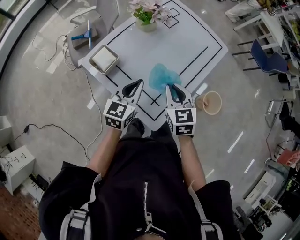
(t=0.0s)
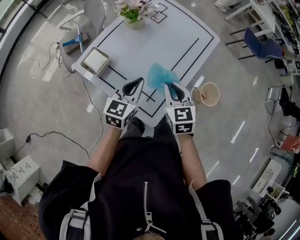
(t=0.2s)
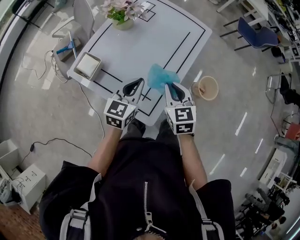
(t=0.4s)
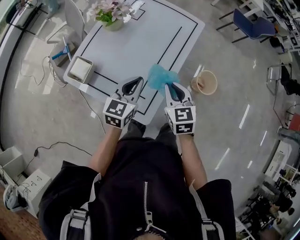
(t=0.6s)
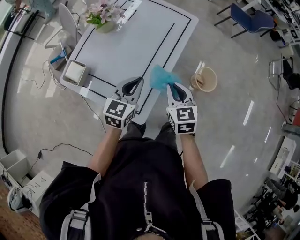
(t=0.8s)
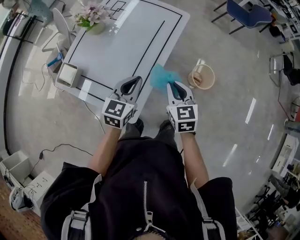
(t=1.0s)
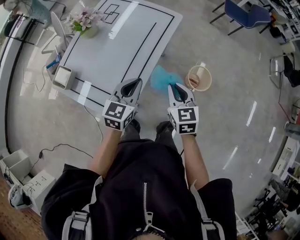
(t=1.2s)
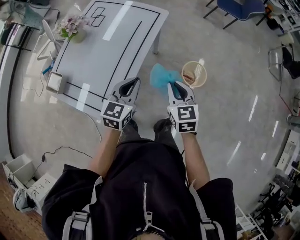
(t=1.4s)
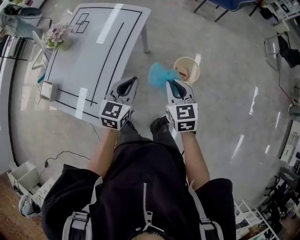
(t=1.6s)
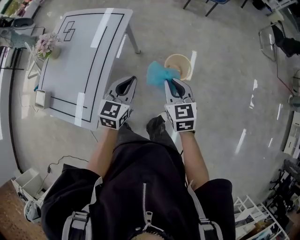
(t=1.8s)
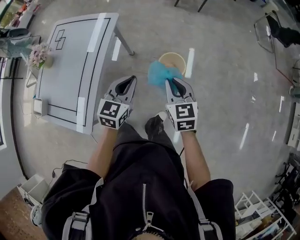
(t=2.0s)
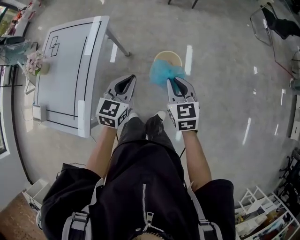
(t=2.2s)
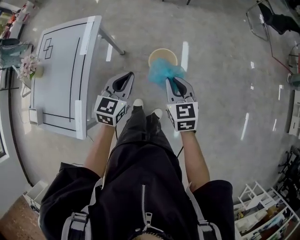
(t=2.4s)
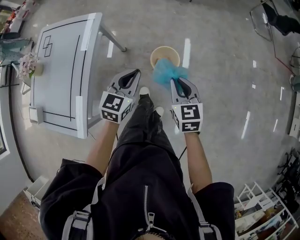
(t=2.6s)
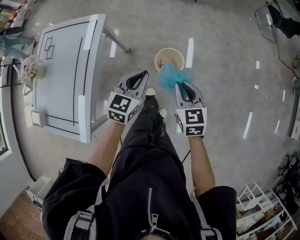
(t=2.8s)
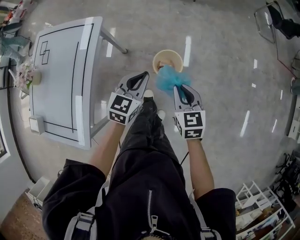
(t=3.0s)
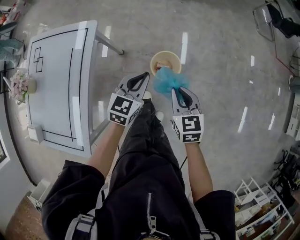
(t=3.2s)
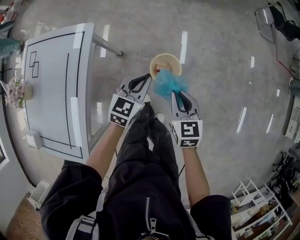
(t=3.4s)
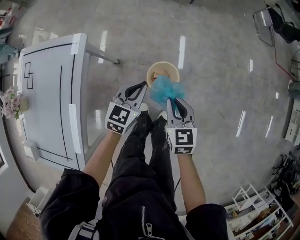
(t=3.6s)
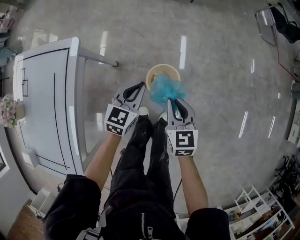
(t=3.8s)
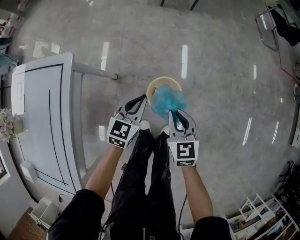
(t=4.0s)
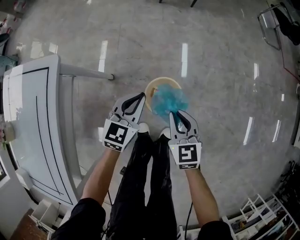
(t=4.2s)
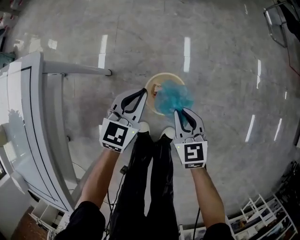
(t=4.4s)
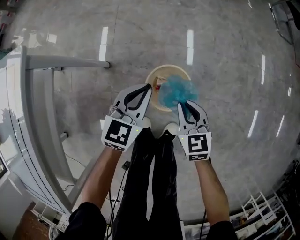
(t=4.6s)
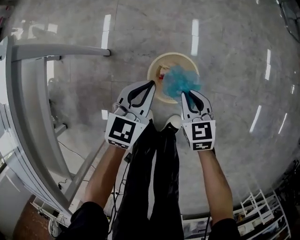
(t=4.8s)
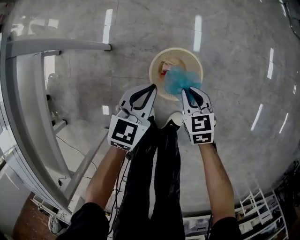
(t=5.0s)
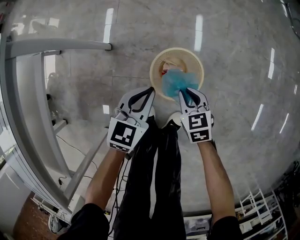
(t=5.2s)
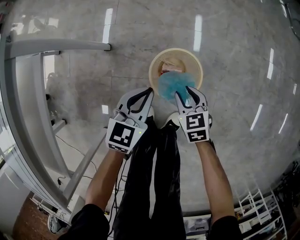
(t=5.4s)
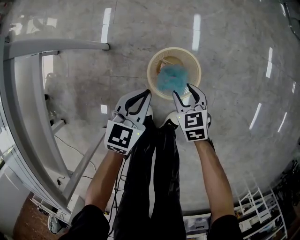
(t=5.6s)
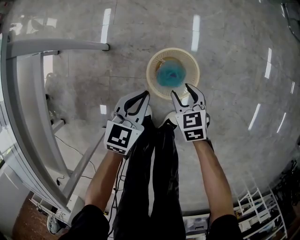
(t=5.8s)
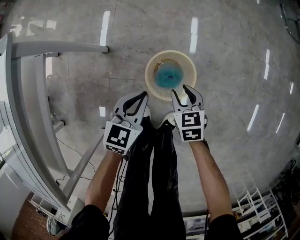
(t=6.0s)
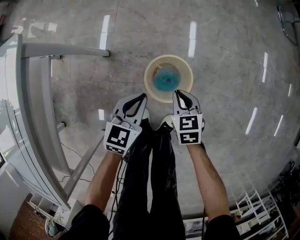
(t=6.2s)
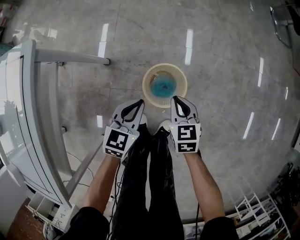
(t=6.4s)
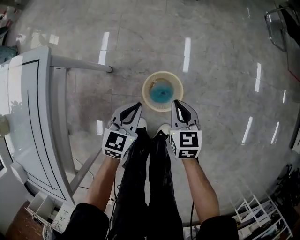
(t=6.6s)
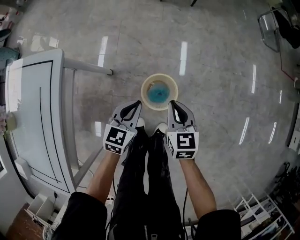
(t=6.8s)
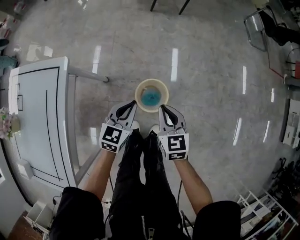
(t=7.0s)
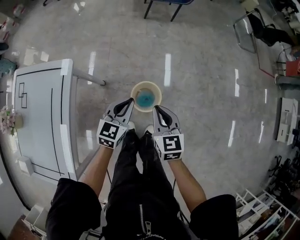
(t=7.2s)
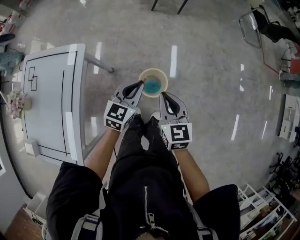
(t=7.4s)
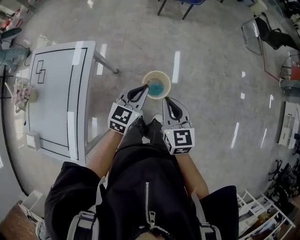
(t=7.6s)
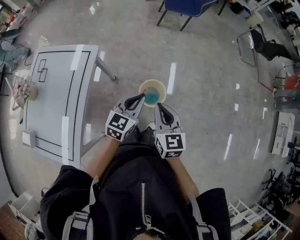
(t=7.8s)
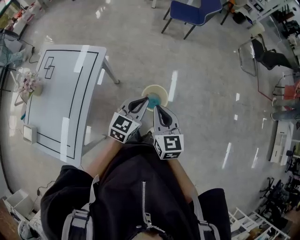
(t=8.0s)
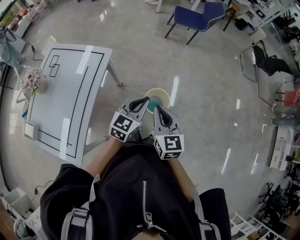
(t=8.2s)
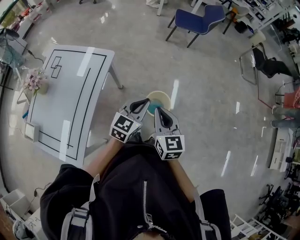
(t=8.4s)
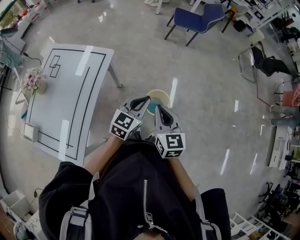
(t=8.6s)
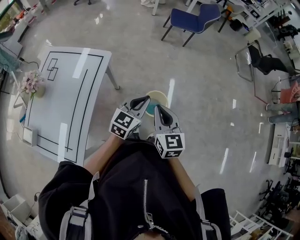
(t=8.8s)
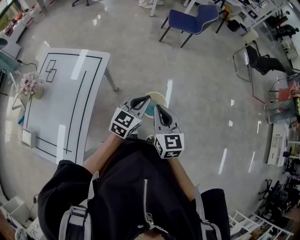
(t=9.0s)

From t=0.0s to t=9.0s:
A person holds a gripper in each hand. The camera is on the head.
From t=0.0s to t=1.6s: Both grippers are carried to the right, about 40 cm. The right gripper turns by approximately 20 degrees. Meanwhile the left gripper turns by some 20 degrees.
From t=1.6s to t=3.0s: Both grippers travel together to the right and forward, about 25 cm.
From t=3.0s to t=4.4s: The grippers both shift downward and forward by some 35 cm.
From t=4.4s to t=6.0s: The left gripper travels downward and backward by about 15 cm. The right gripper moves downward, roughly 20 cm, and opens up.
From t=6.0s to t=7.6s: Both grippers move upward, approximately 50 cm. The right gripper turns by roughly 30 degrees, and closes up.
From t=7.6s to t=9.0s: The right gripper goes some 10 cm to the left; the left gripper is displaced to the left by approximately 5 cm.

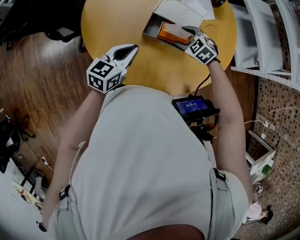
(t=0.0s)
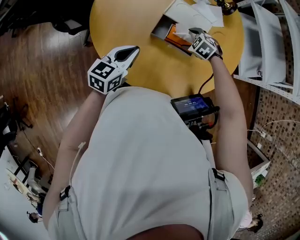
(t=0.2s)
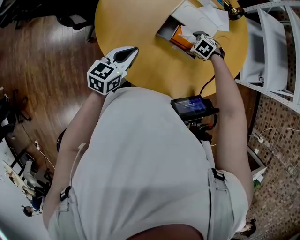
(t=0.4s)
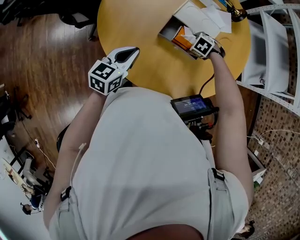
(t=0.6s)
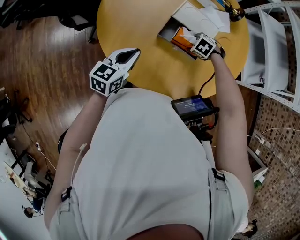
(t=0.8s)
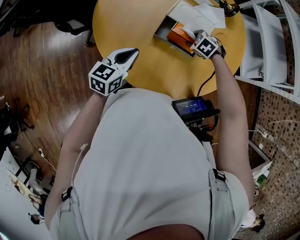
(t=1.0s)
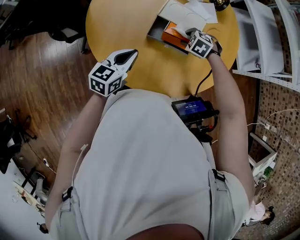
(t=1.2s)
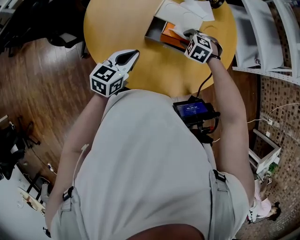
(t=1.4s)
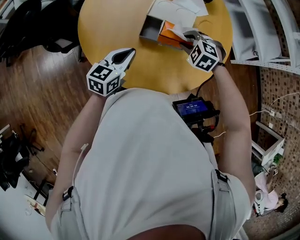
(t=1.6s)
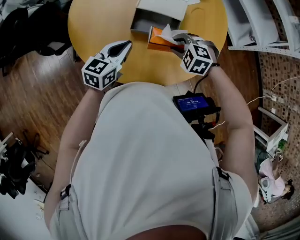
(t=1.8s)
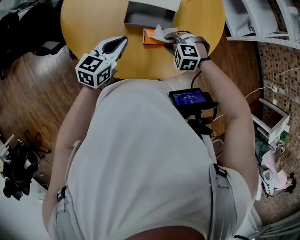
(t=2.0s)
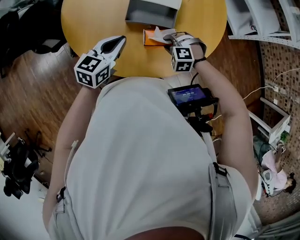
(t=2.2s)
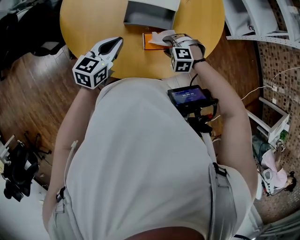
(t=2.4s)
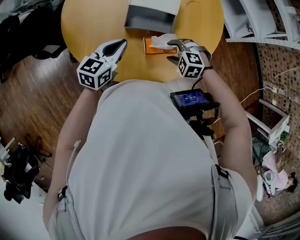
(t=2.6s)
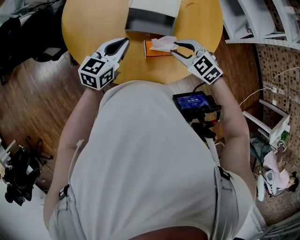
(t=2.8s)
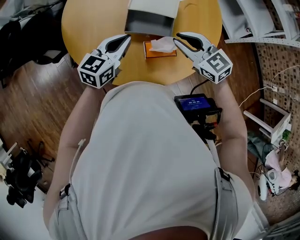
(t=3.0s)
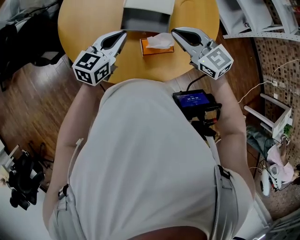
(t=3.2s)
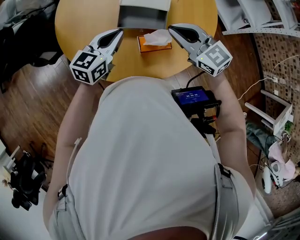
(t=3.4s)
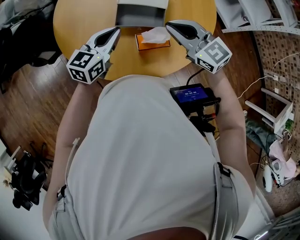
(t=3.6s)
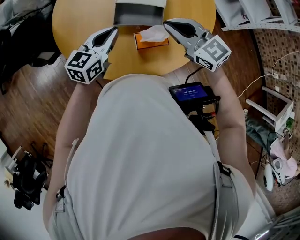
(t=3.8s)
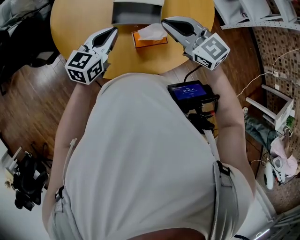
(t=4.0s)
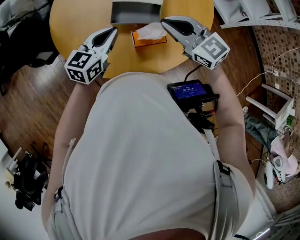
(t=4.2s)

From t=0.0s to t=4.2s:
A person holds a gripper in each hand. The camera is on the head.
From t=0.0s to t=1.4s: The right gripper reaches approximately 10 cm downward, then returns, and closes.
From t=1.4s to t=2.8s: The right gripper goes approximately 15 cm backward and upward, and swivels some 40 degrees.
From t=2.8s to t=4.2s: The right gripper heads upward, covering roughly 10 cm, and angles its fingers upward, by approximately 30 degrees.

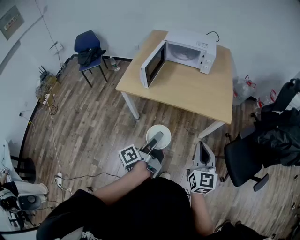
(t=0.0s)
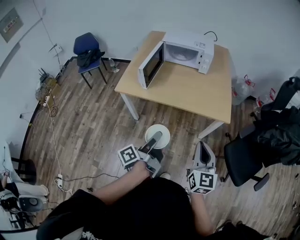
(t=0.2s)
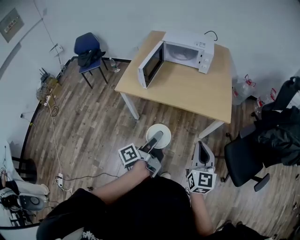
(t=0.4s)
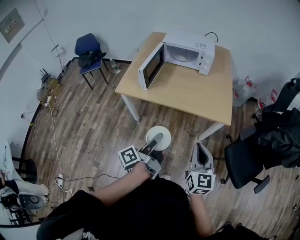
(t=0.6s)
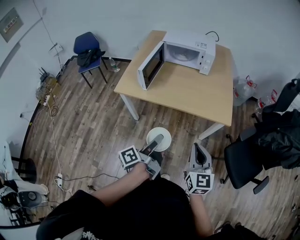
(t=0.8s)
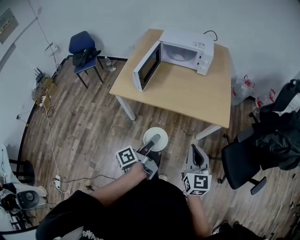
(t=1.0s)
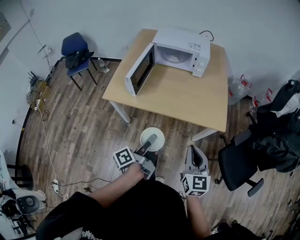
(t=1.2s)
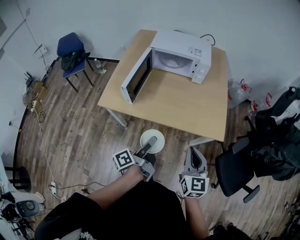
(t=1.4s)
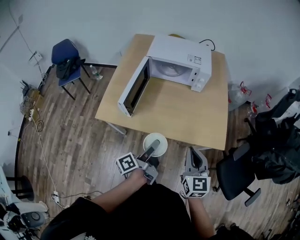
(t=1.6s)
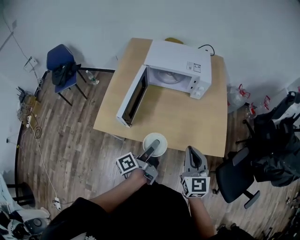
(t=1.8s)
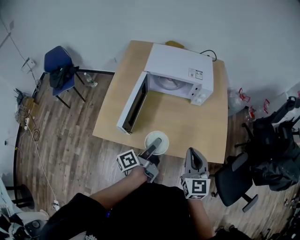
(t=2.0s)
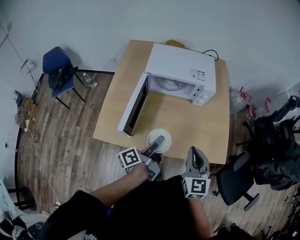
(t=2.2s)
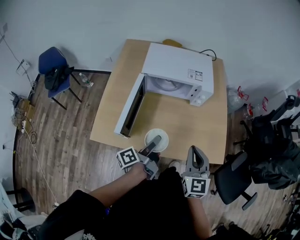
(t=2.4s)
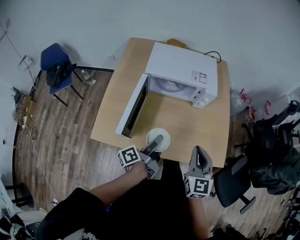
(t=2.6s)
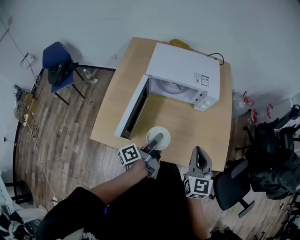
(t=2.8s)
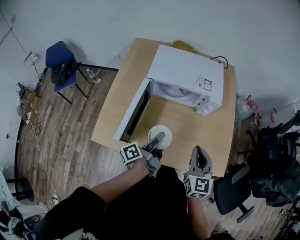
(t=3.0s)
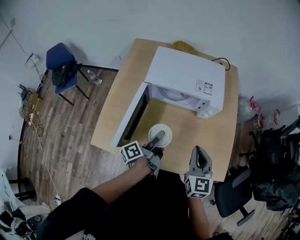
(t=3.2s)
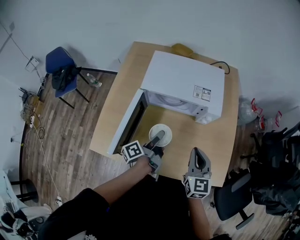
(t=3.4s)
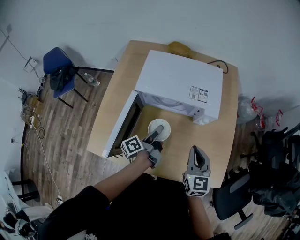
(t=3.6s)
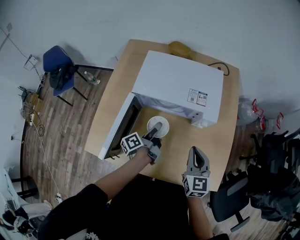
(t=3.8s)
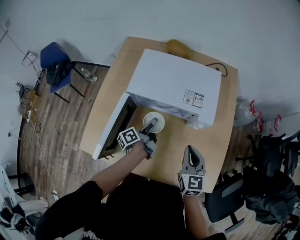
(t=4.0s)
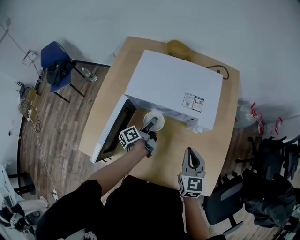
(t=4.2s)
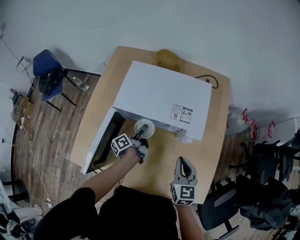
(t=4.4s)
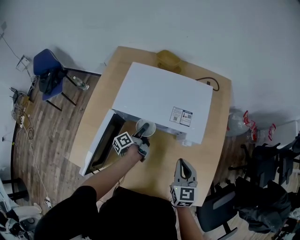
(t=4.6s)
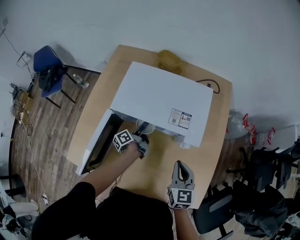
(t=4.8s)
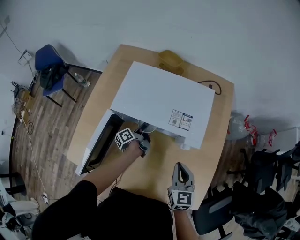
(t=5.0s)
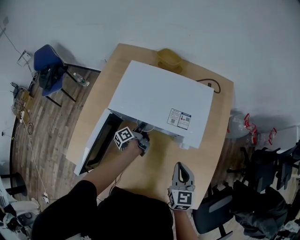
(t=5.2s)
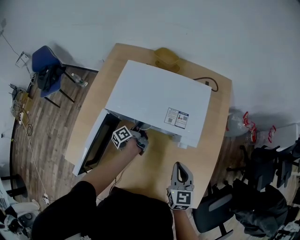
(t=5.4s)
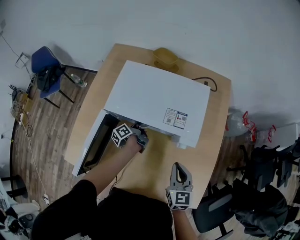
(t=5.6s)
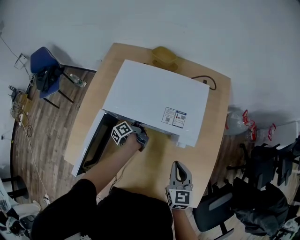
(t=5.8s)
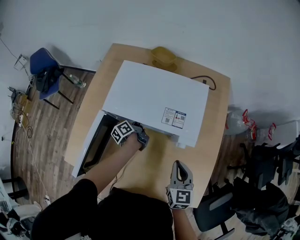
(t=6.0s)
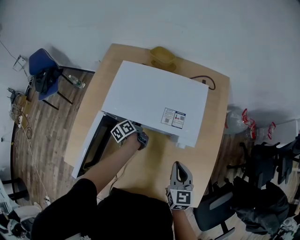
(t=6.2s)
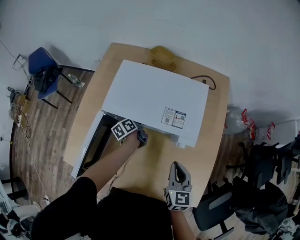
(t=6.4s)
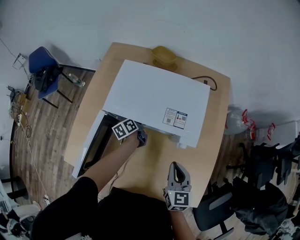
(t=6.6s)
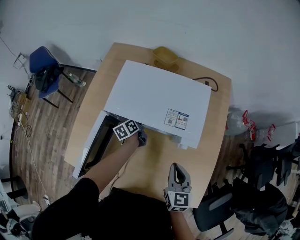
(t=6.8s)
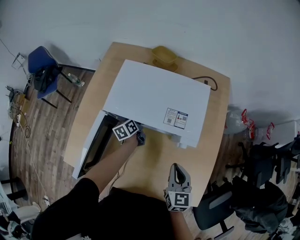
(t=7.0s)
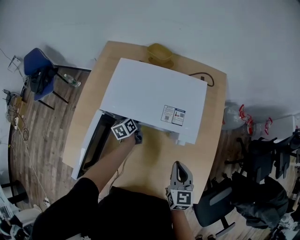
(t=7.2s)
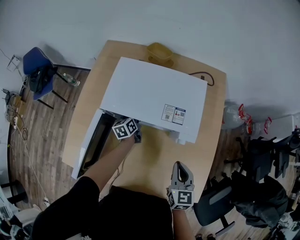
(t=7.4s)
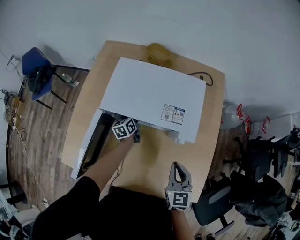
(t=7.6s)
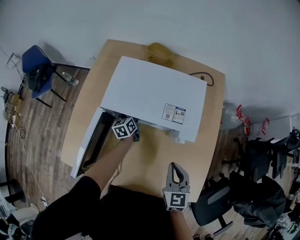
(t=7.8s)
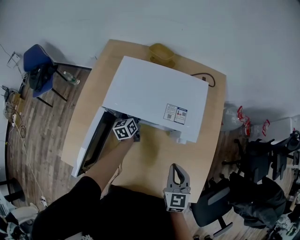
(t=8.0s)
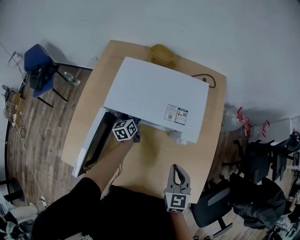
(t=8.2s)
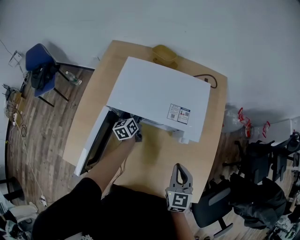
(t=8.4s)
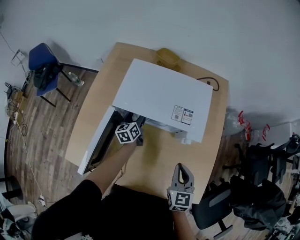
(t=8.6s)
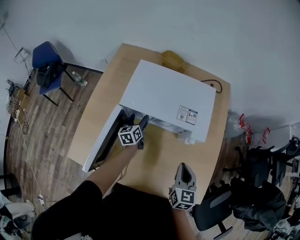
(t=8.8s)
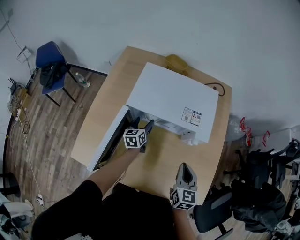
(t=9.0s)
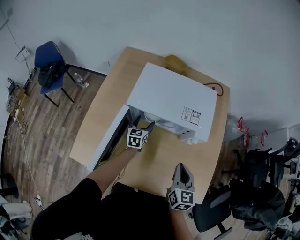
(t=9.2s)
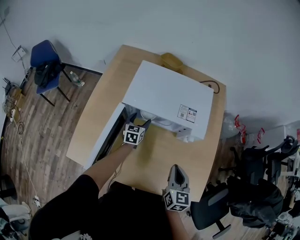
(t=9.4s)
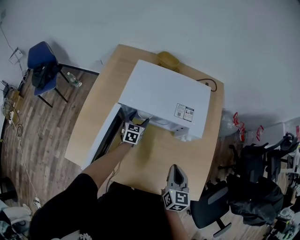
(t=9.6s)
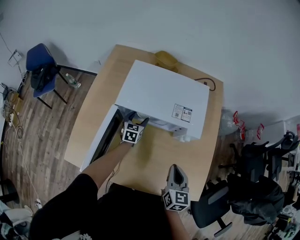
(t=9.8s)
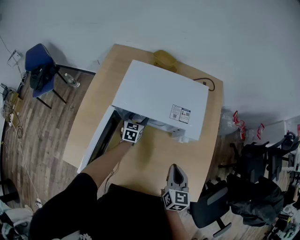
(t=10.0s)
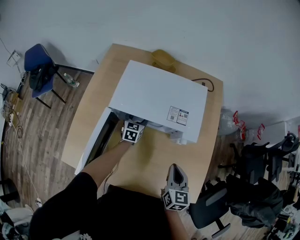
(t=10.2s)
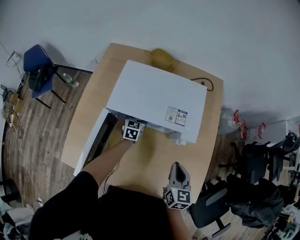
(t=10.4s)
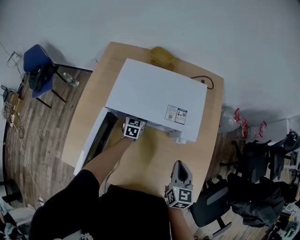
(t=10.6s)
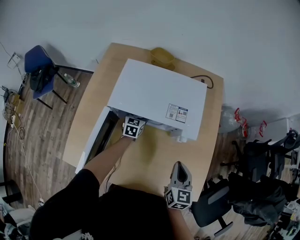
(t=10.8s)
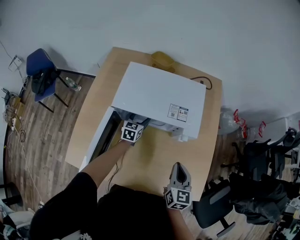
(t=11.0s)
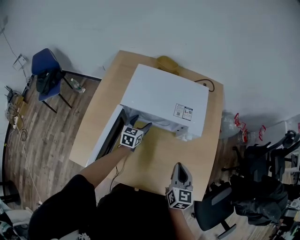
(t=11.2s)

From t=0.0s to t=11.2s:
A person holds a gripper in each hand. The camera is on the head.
From t=0.0s to t=1.6s: Both grippers travel together forward, some 25 cm.
From t=1.6s to t=3.2s: The two grippers go roughly 25 cm forward.
From t=3.2s to t=4.8s: The left gripper travels forward and downward by about 30 cm, while the right gripper goes roughly 15 cm forward, downward and to the right.
From t=4.8s to t=6.4s: The left gripper travels forward by roughly 5 cm, and turns by roughly 30 degrees.
From t=6.4s to t=8.0s: The left gripper swivels approximately 30 degrees.
From t=8.0s to t=9.6s: The left gripper moves backward, roughly 5 cm, and turns by approximately 30 degrees. Meanwhile the right gripper moves approximately 5 cm.
From t=9.6s to t=11.2s: The left gripper reaches roughly 5 cm forward, then returns.
